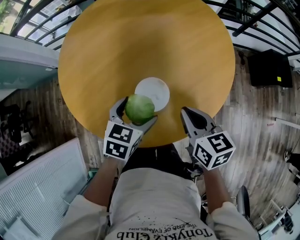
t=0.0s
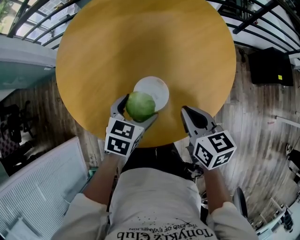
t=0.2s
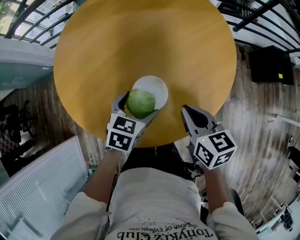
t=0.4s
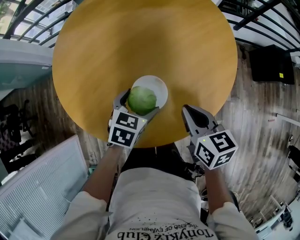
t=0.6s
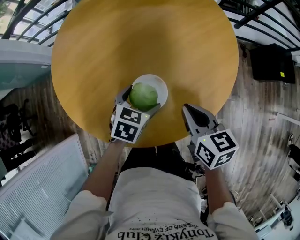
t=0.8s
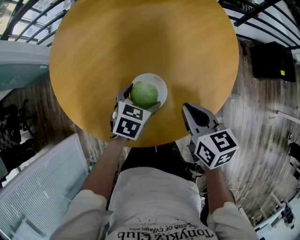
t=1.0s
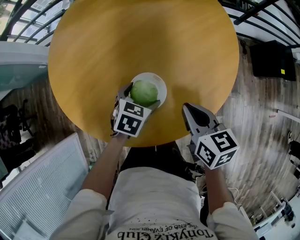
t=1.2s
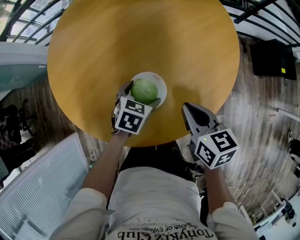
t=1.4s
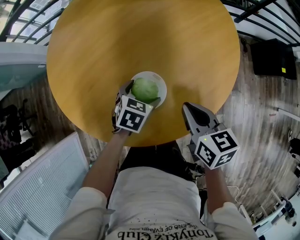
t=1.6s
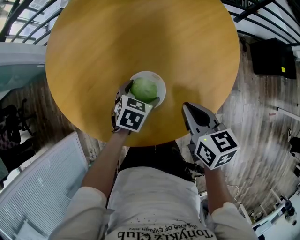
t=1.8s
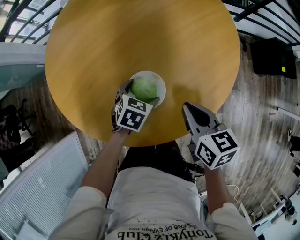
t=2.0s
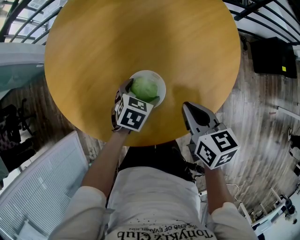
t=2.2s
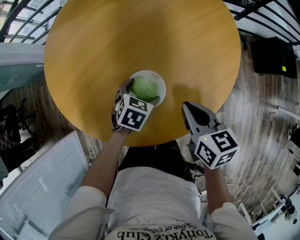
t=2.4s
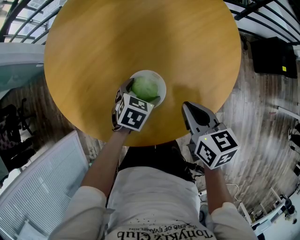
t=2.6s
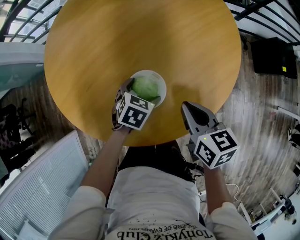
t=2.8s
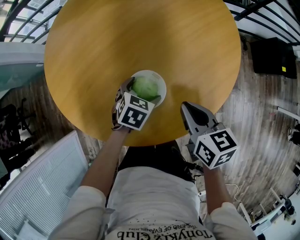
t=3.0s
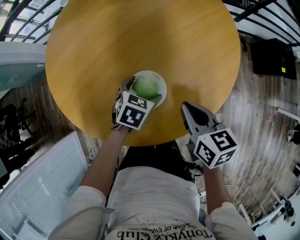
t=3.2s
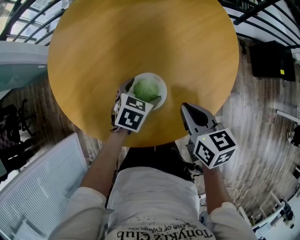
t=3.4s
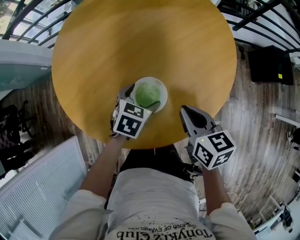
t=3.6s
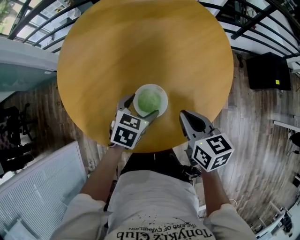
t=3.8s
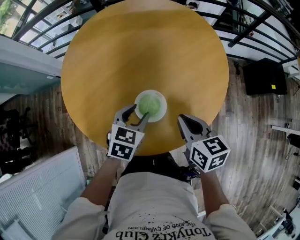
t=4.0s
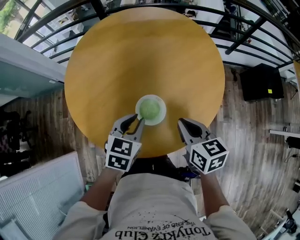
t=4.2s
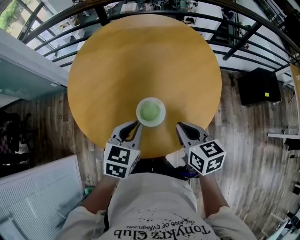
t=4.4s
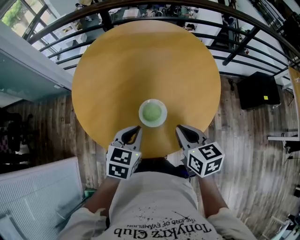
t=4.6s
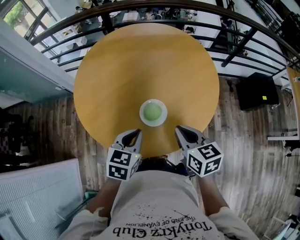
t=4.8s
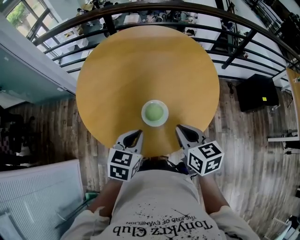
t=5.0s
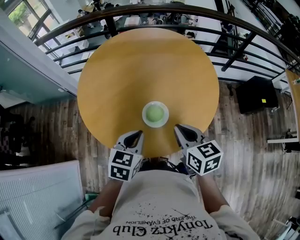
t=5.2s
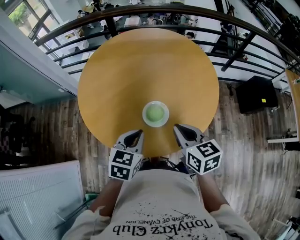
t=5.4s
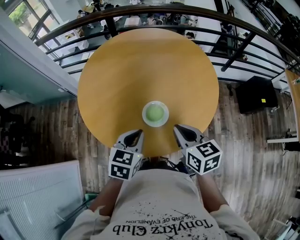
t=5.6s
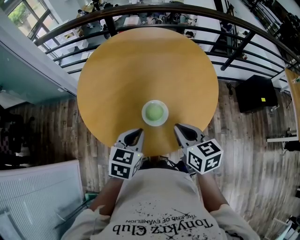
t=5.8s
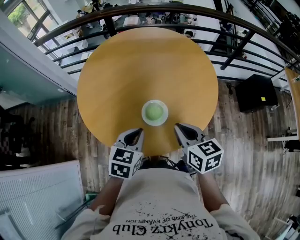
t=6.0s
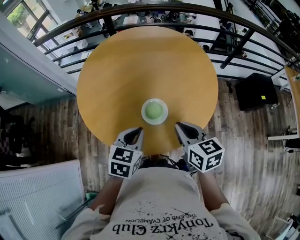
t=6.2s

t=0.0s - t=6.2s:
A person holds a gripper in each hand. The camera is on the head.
t=0.0s - t=1.6s: The left gripper shifts some 10 cm downward.
t=1.6s - t=3.2s: The grippers stay close to where they were, moving slightly.
t=3.2s - t=4.6s: The left gripper travels upward and backward by roughly 25 cm, rotates about 20 degrees, and closes. Meanwhile the right gripper shifts about 15 cm upward and backward.
t=4.6s - t=6.2s: The grippers stay close to where they were, moving slightly.

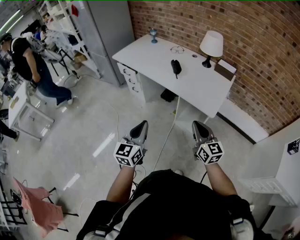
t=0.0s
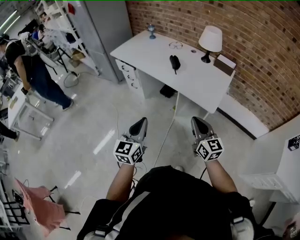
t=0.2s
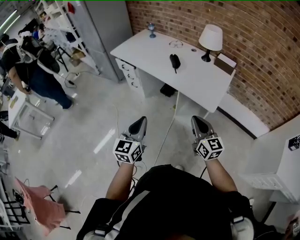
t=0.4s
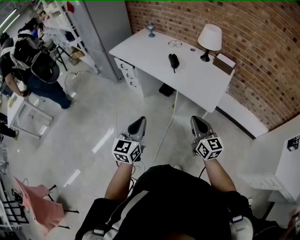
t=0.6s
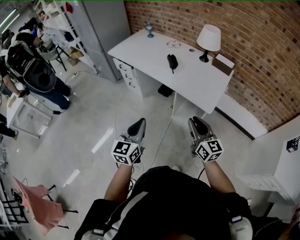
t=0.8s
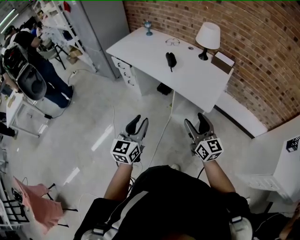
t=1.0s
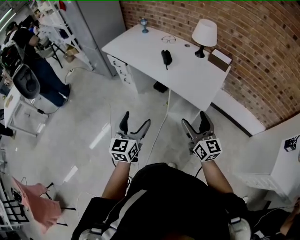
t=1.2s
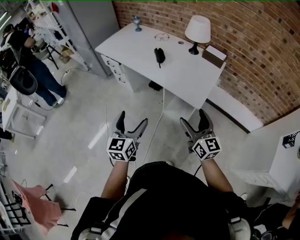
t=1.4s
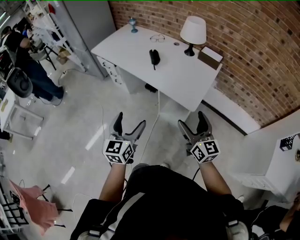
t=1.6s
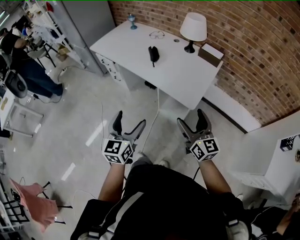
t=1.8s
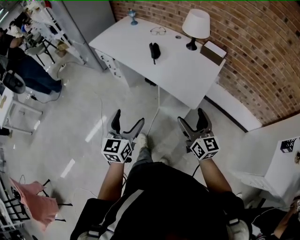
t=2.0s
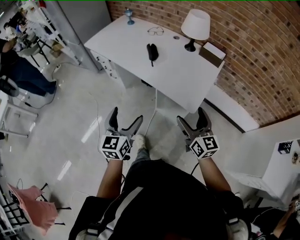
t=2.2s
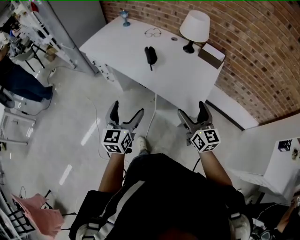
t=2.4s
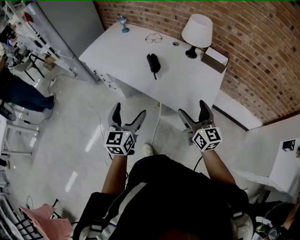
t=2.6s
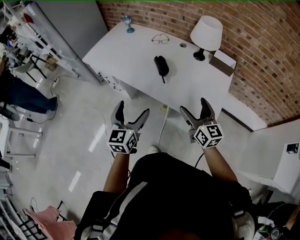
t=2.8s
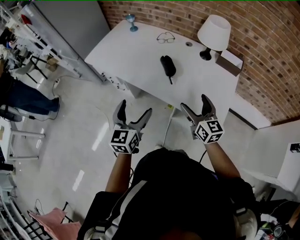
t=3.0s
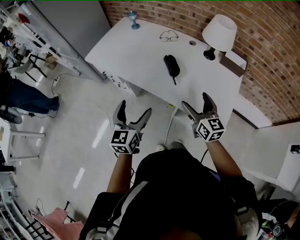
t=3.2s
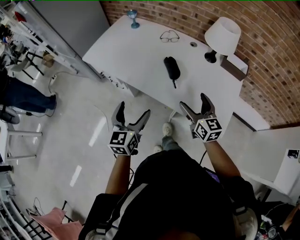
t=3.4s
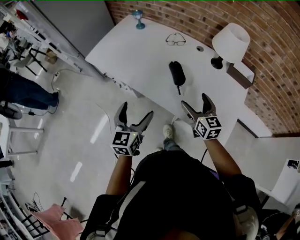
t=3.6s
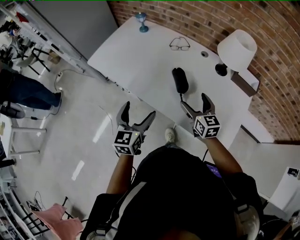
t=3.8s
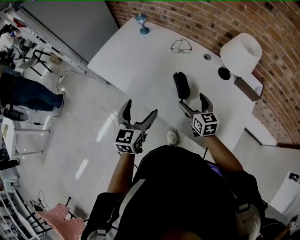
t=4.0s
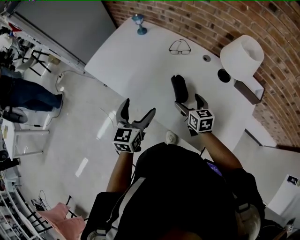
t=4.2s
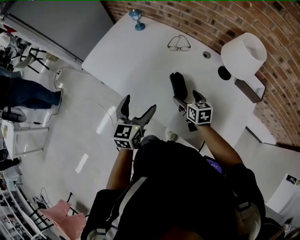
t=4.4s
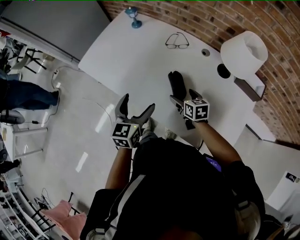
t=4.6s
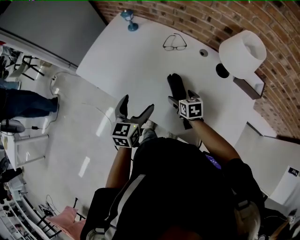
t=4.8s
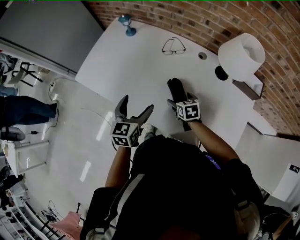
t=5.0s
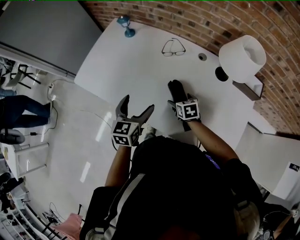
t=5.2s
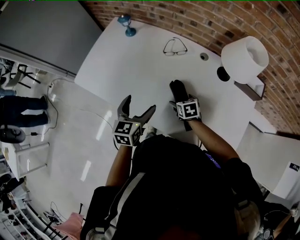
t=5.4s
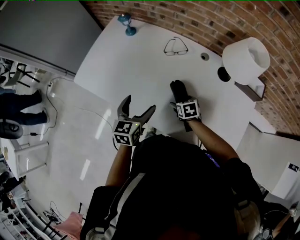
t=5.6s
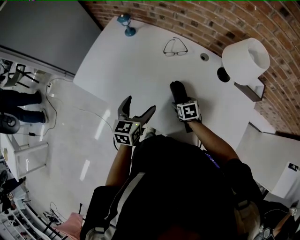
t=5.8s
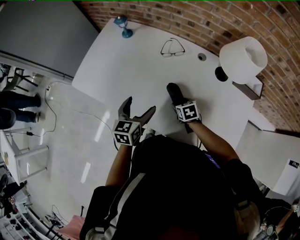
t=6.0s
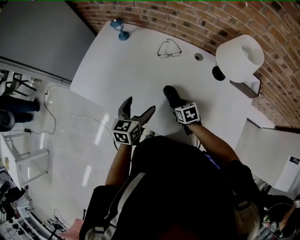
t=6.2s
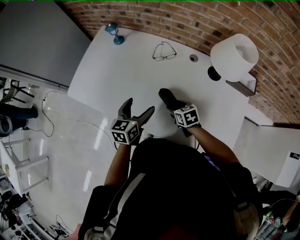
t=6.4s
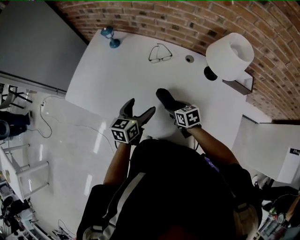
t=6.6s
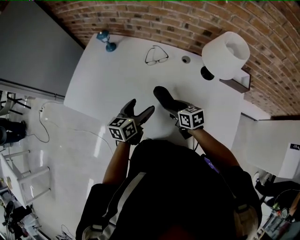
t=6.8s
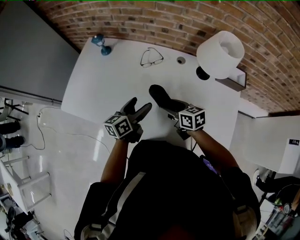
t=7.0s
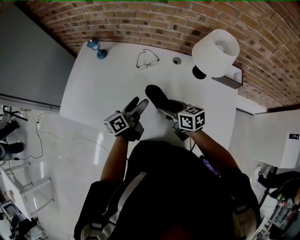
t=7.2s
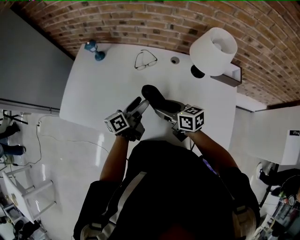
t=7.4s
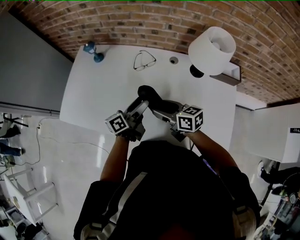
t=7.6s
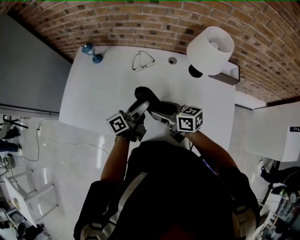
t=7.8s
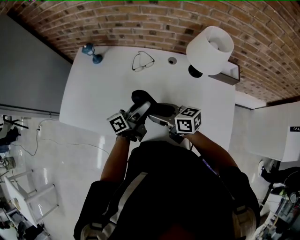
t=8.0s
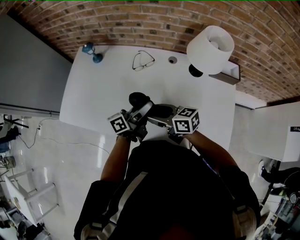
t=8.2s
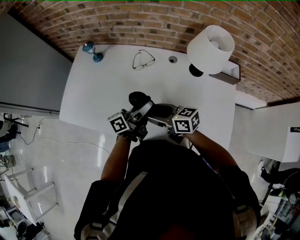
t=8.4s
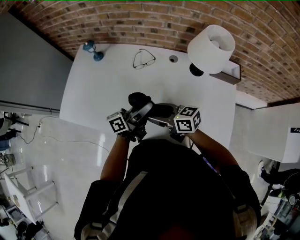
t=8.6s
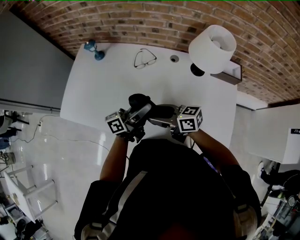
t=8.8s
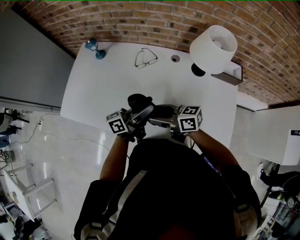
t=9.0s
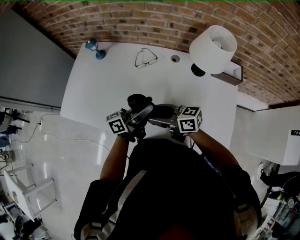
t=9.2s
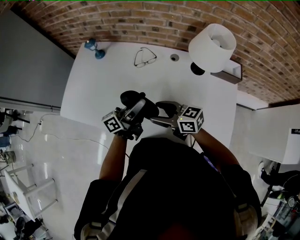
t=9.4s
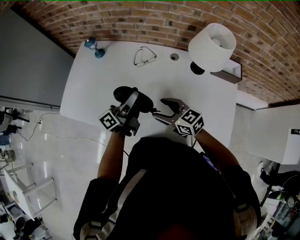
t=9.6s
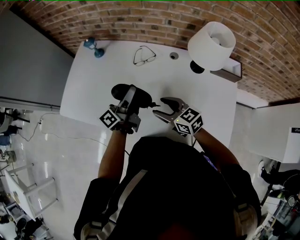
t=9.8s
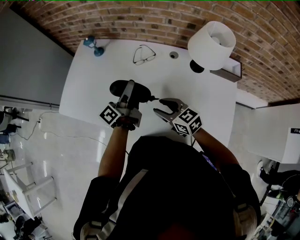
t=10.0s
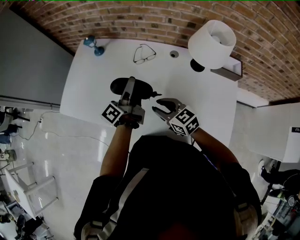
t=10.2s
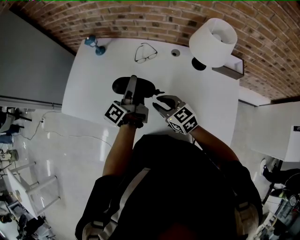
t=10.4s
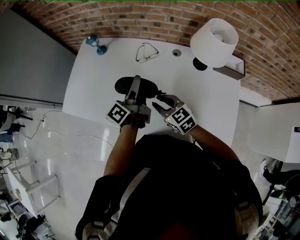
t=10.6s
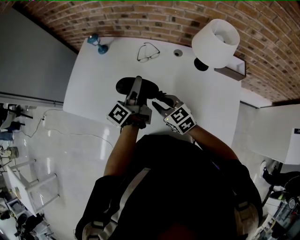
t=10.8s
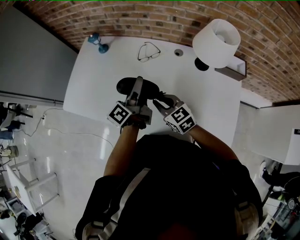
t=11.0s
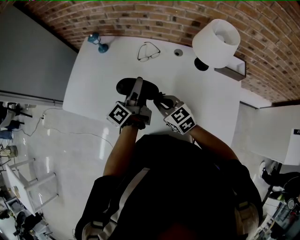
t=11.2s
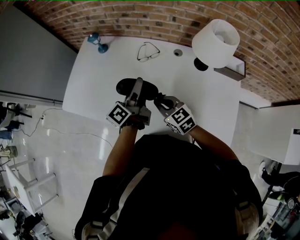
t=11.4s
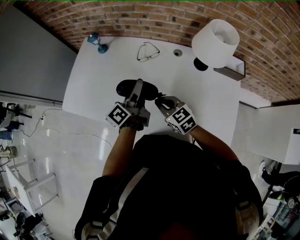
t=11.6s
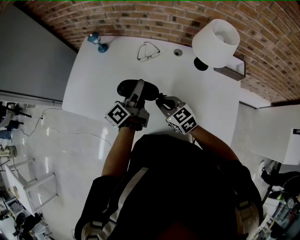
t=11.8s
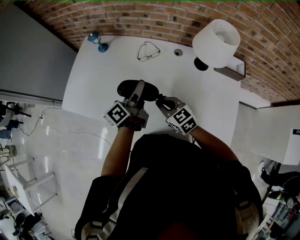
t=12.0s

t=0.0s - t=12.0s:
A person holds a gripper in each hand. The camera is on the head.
t=0.0s - t=1.6s: Both grippers travel together to the right, some 10 cm. The right gripper opens up. The left gripper opens up.
t=1.6s - t=3.0s: The two grippers go approximately 30 cm forward.
t=3.0s - t=4.4s: The left gripper goes about 25 cm forward. Meanwhile the right gripper heads forward and downward, covering approximately 30 cm, and rotates some 30 degrees.
t=4.4s - t=6.0s: The right gripper moves downward, approximately 10 cm, turns by approximately 30 degrees, and closes up. The left gripper heads forward and downward, covering approximately 10 cm.
t=6.0s - t=7.6s: The right gripper is displaced upward by approximately 15 cm, and tips its fingers upward by approximately 40 degrees. Meanwhile the left gripper travels to the right and forward by approximately 10 cm, and changes its angle by some 60 degrees.
t=7.6s - t=9.0s: The left gripper shifts roughly 5 cm upward. Meanwhile the right gripper changes place by roughly 5 cm.
t=9.0s - t=10.4s: The right gripper swivels some 40 degrees. Meanwhile the left gripper shifts some 10 cm forward, and changes its angle by about 40 degrees.
t=10.4s - t=12.0s: The grippers make only small movements.

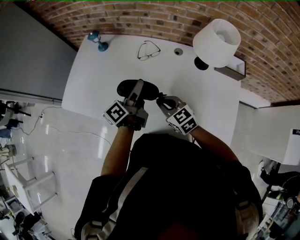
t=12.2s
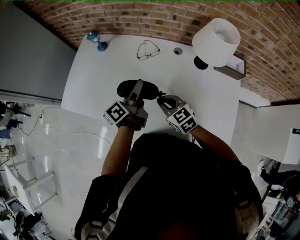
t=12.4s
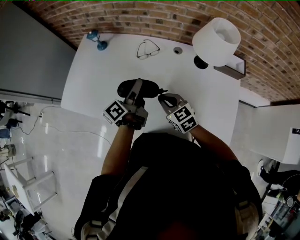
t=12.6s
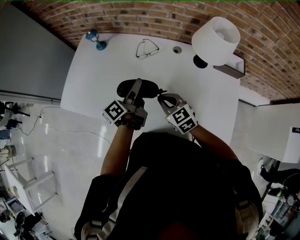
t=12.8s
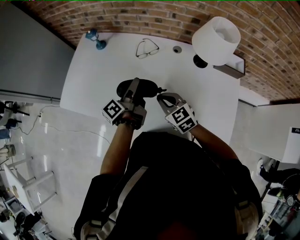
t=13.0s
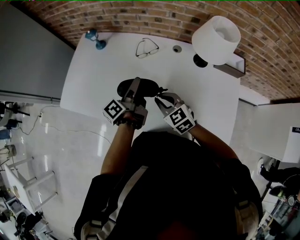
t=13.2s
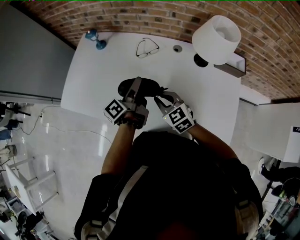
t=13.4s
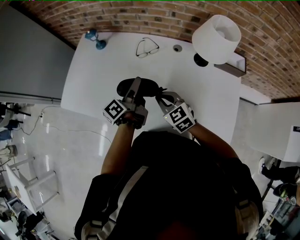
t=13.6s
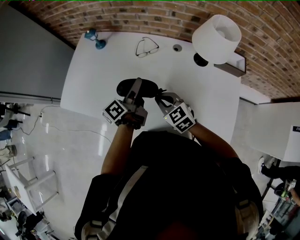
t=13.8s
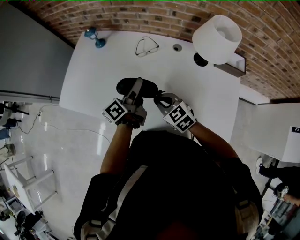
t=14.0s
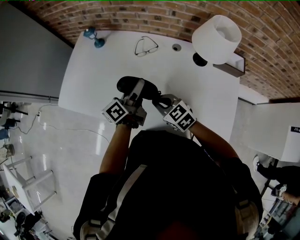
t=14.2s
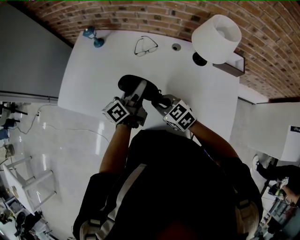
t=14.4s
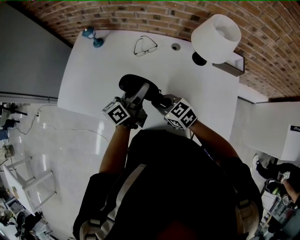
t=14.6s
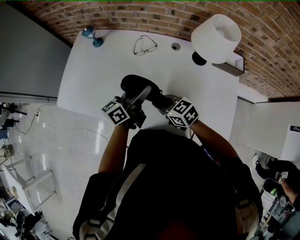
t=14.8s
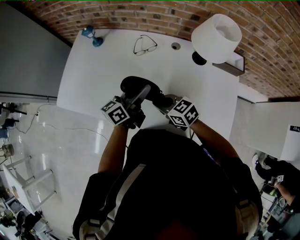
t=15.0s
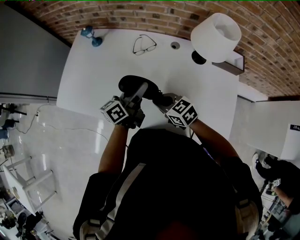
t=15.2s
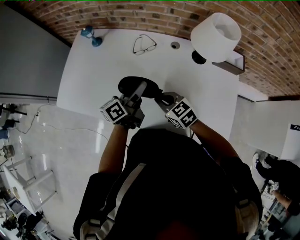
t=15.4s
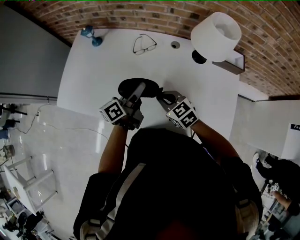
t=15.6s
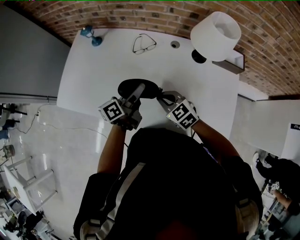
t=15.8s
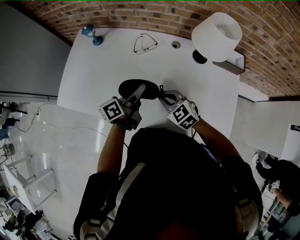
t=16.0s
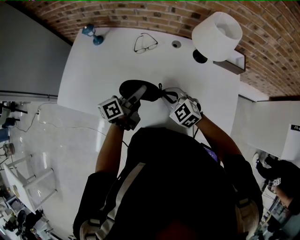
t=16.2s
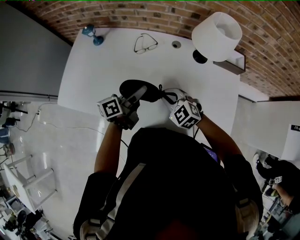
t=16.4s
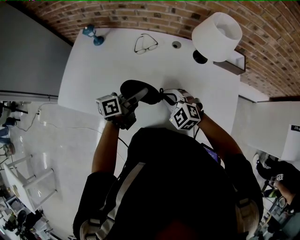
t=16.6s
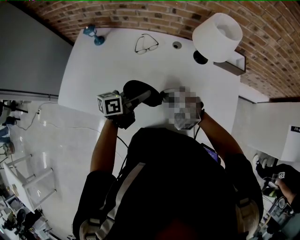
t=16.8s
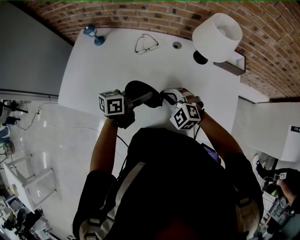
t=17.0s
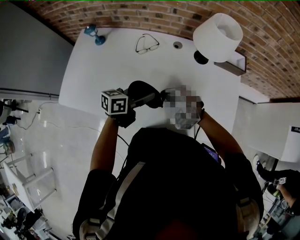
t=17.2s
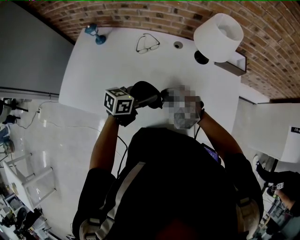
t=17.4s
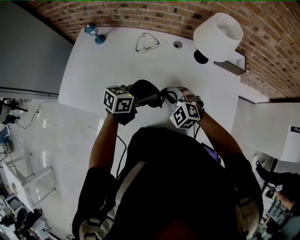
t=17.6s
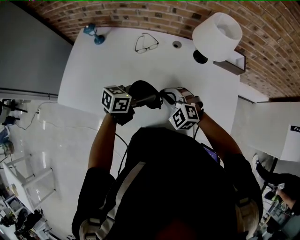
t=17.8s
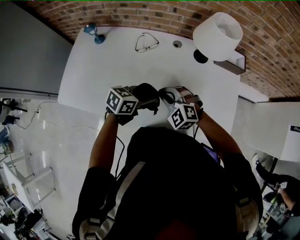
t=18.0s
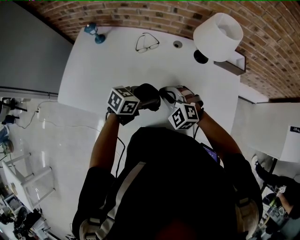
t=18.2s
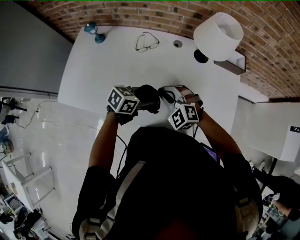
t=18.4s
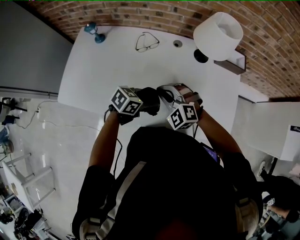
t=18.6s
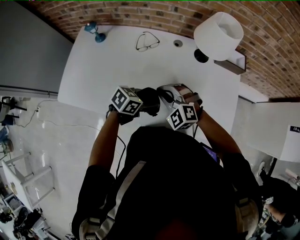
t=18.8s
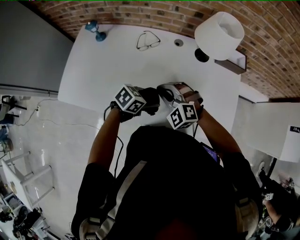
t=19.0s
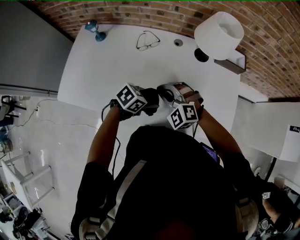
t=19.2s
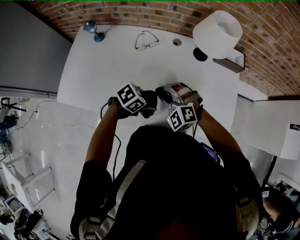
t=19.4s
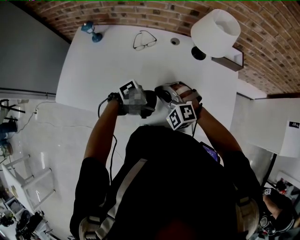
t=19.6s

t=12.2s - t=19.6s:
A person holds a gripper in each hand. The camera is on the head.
t=12.2s - t=13.6s: There are only small adjustments of the grippers.
t=13.6s - t=15.2s: The right gripper rotates approximately 20 degrees. Meanwhile the left gripper changes its angle by about 30 degrees.
t=15.2s - t=16.6s: The right gripper rotates about 40 degrees.
t=16.6s - t=18.2s: The left gripper moves about 5 cm, and swivels some 40 degrees.
t=18.2s - t=19.6s: The left gripper ends up some 10 cm from where it was, and changes its angle by roughly 40 degrees.
